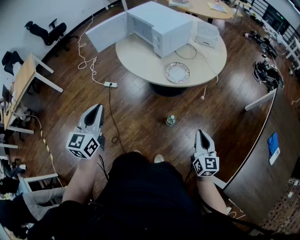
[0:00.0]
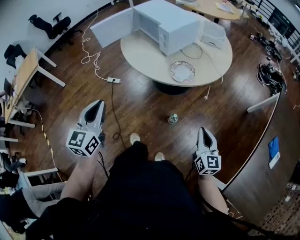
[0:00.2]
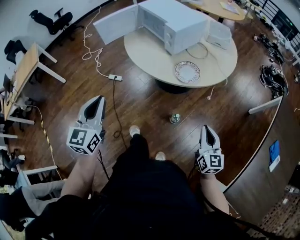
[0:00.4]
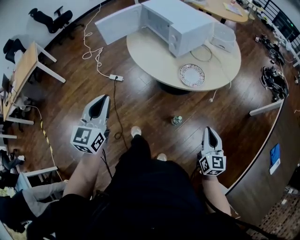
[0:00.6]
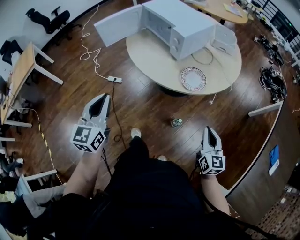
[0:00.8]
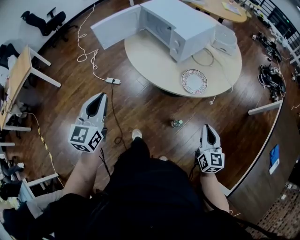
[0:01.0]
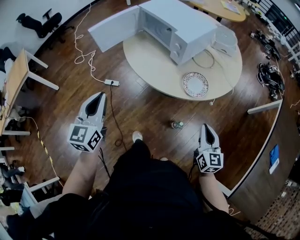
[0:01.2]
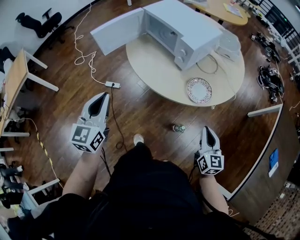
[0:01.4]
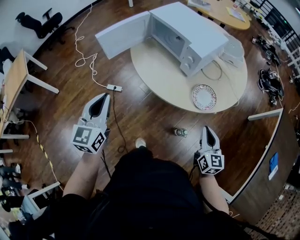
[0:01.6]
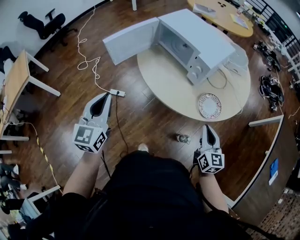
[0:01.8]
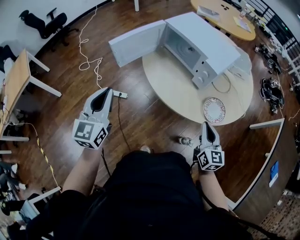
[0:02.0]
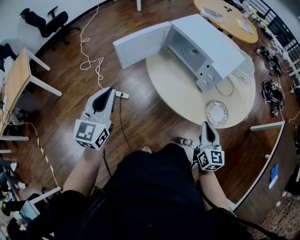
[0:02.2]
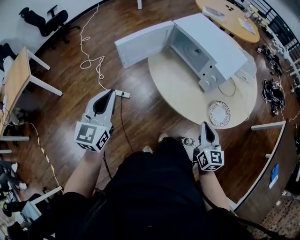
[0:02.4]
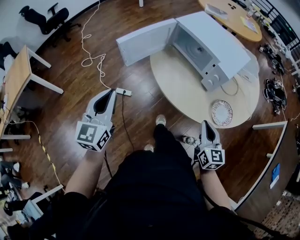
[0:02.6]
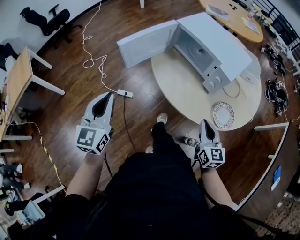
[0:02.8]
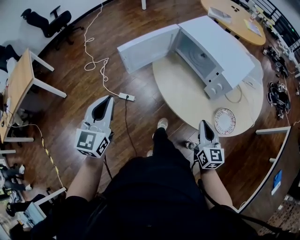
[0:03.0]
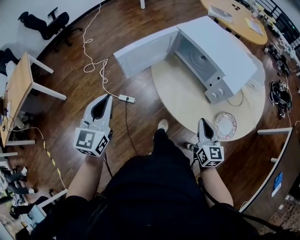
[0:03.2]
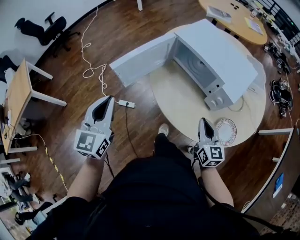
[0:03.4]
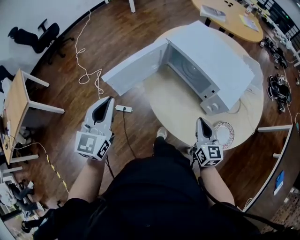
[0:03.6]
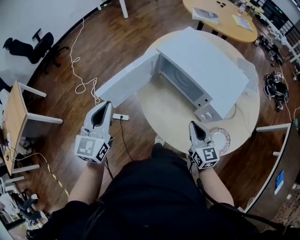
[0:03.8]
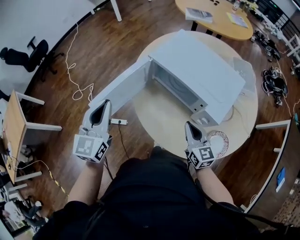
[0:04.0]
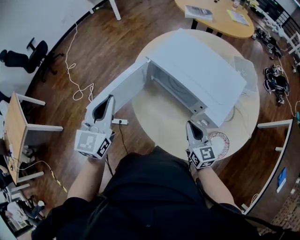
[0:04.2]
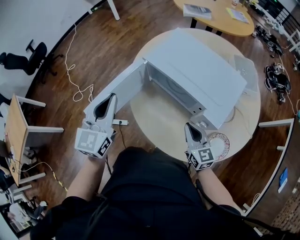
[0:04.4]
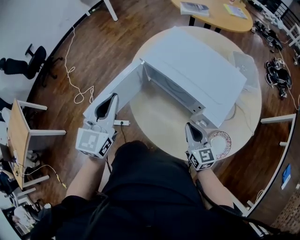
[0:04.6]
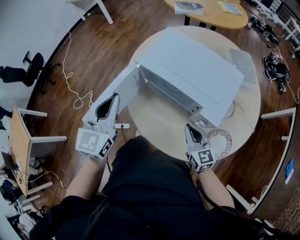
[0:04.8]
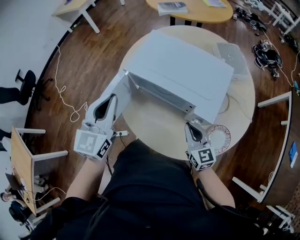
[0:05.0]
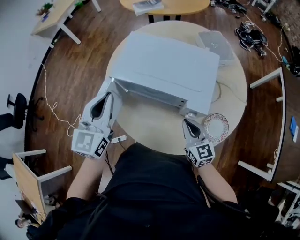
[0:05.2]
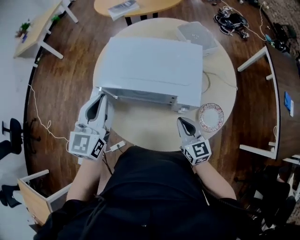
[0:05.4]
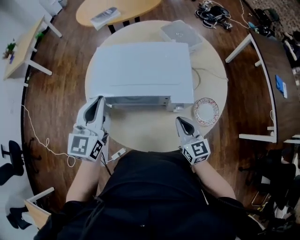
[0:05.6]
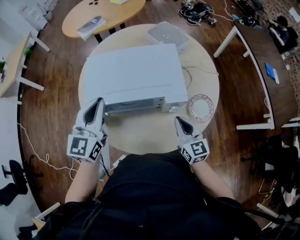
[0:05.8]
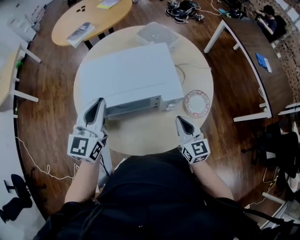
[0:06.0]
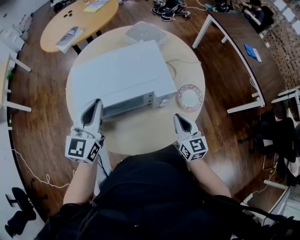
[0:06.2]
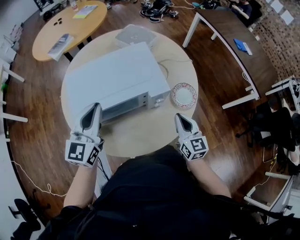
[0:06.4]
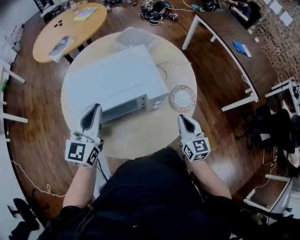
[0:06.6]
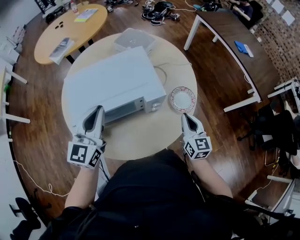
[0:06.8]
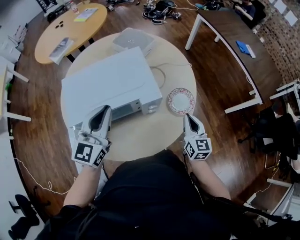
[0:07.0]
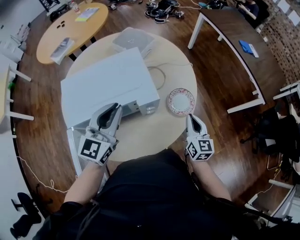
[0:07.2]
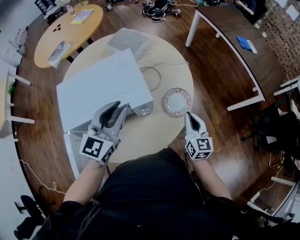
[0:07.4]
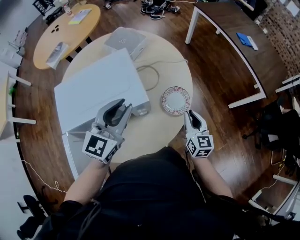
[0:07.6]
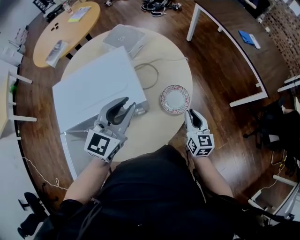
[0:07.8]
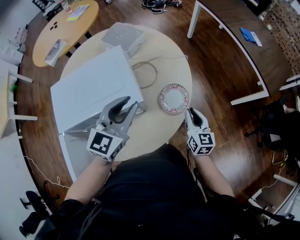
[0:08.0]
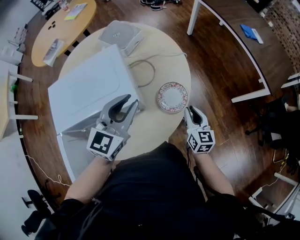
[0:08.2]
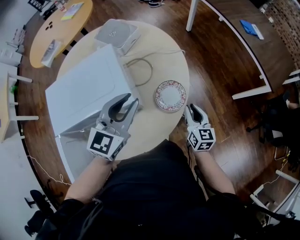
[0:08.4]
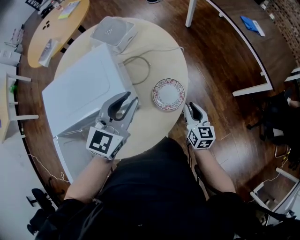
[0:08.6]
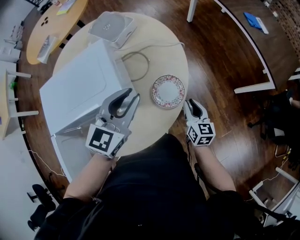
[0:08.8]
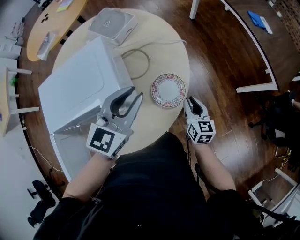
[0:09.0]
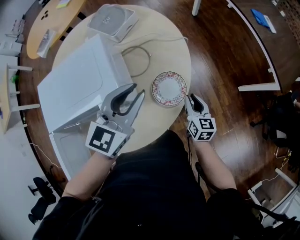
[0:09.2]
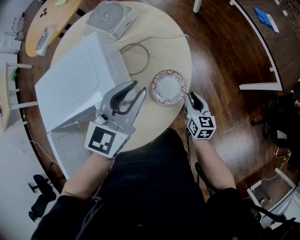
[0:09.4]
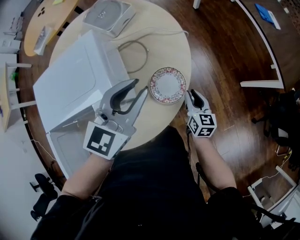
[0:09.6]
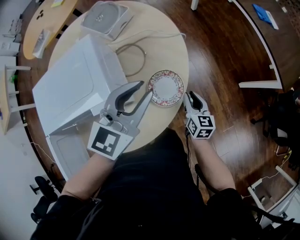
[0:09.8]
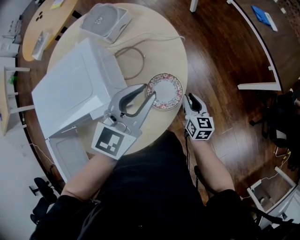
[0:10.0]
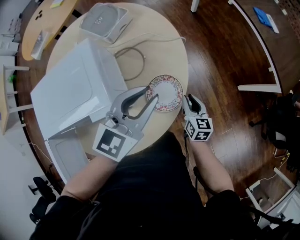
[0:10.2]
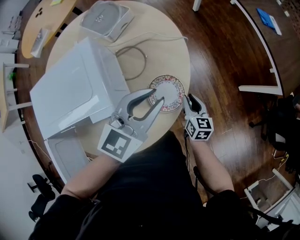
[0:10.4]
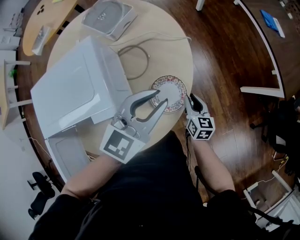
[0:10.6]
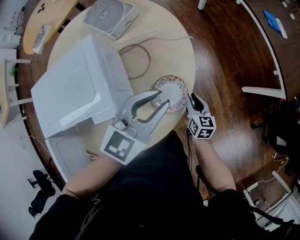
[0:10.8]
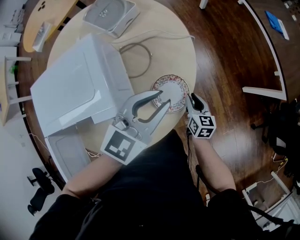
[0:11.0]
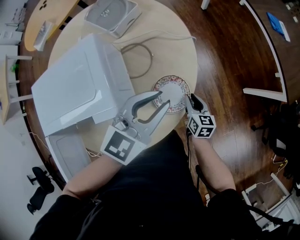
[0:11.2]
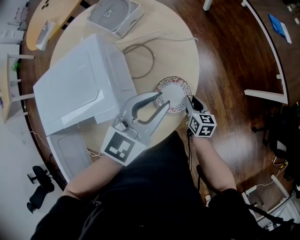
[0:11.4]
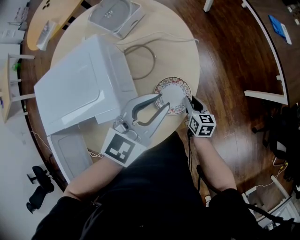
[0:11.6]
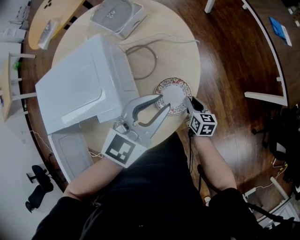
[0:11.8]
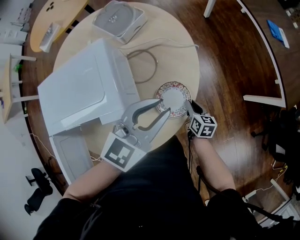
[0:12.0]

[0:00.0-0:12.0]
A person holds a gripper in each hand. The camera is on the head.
0:00.0 to 0:01.6: The two grippers go roughly 25 cm forward and to the left.
0:01.6 to 0:03.0: Both grippers move to the left and forward, approximately 15 cm.
0:03.0 to 0:04.4: The right gripper moves forward, some 15 cm; the left gripper shifts about 30 cm forward and to the right.
0:04.4 to 0:06.0: The right gripper ends up some 10 cm from where it was, and changes its angle by approximately 50 degrees, while the left gripper moves about 20 cm, and turns by some 50 degrees.
0:06.0 to 0:07.6: Both grippers travel together to the right, roughly 20 cm. The left gripper rotates approximately 20 degrees, and opens its fingers, while the right gripper changes its angle by some 20 degrees.
0:07.6 to 0:09.0: The left gripper heads to the right and forward, covering some 10 cm; the right gripper goes some 10 cm downward.
0:09.0 to 0:10.4: The left gripper shifts approximately 5 cm to the right. The right gripper moves roughly 5 cm.
0:10.4 to 0:12.0: The right gripper shifts by about 5 cm.

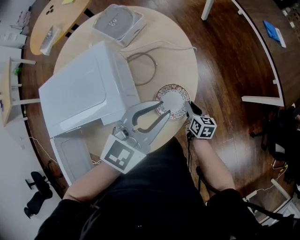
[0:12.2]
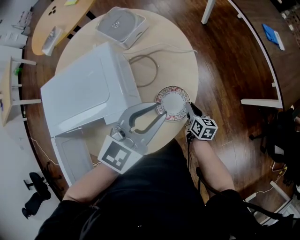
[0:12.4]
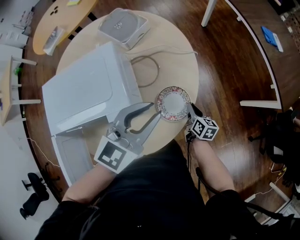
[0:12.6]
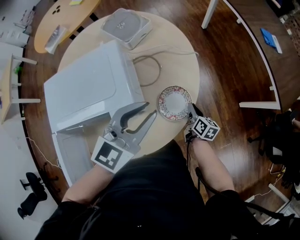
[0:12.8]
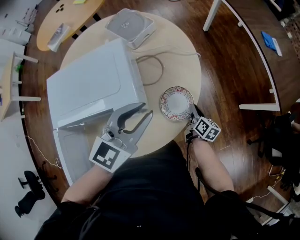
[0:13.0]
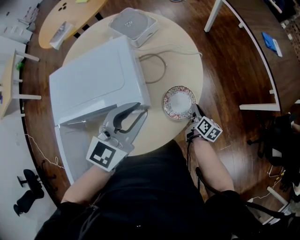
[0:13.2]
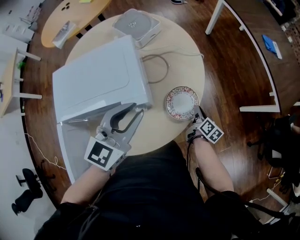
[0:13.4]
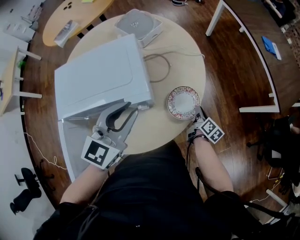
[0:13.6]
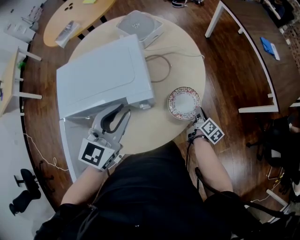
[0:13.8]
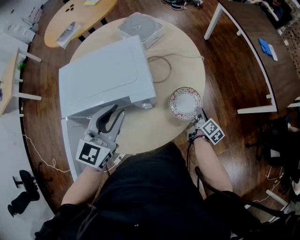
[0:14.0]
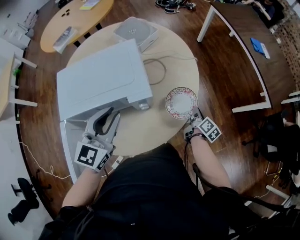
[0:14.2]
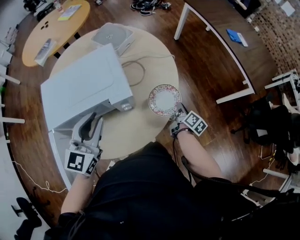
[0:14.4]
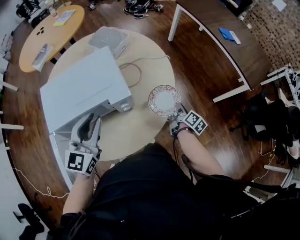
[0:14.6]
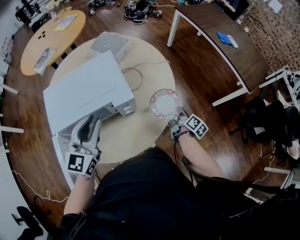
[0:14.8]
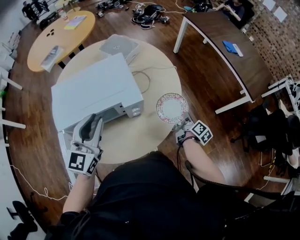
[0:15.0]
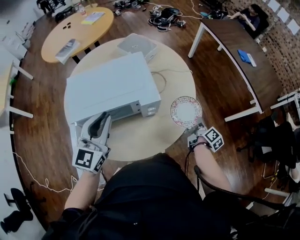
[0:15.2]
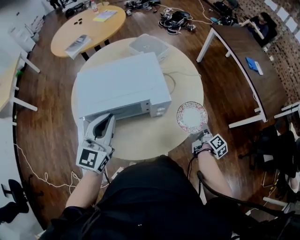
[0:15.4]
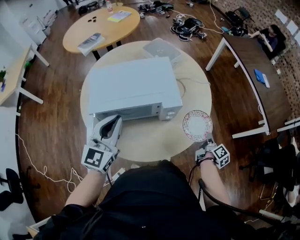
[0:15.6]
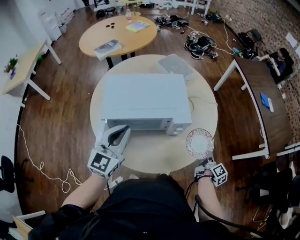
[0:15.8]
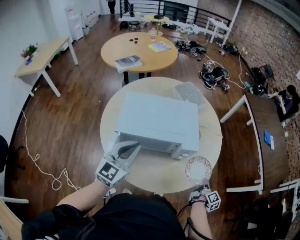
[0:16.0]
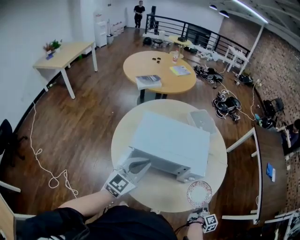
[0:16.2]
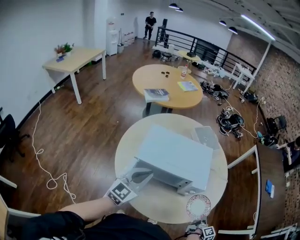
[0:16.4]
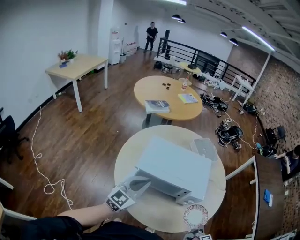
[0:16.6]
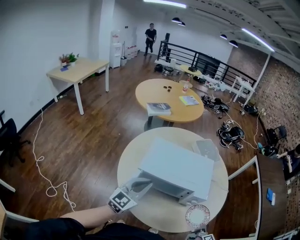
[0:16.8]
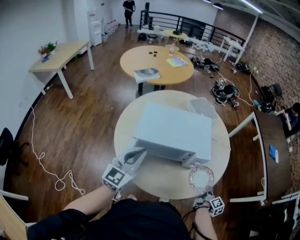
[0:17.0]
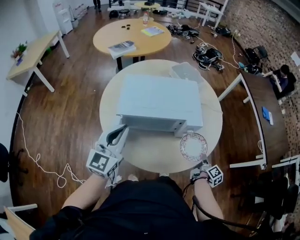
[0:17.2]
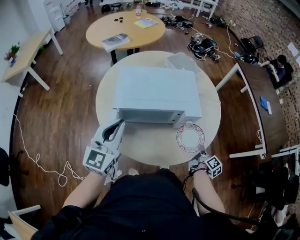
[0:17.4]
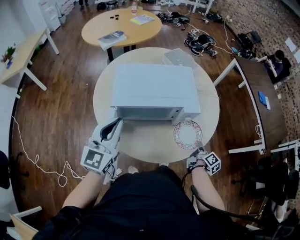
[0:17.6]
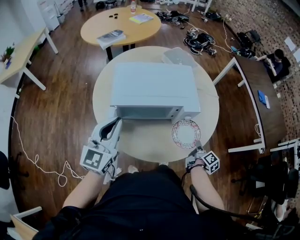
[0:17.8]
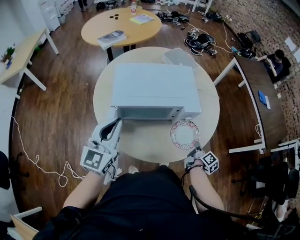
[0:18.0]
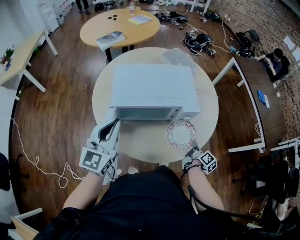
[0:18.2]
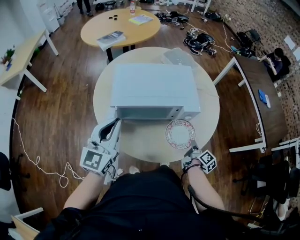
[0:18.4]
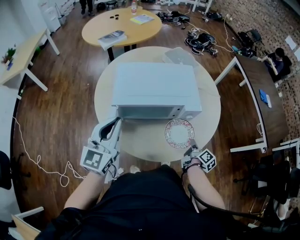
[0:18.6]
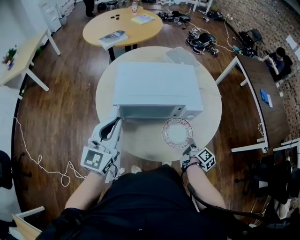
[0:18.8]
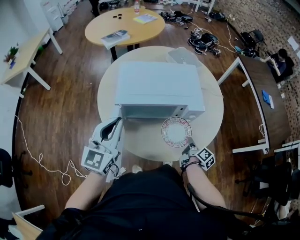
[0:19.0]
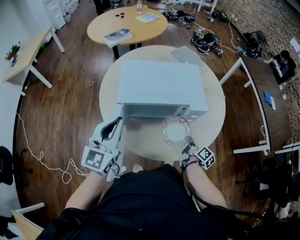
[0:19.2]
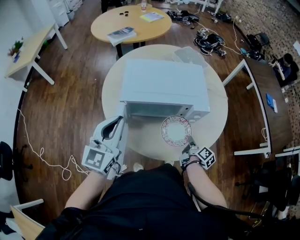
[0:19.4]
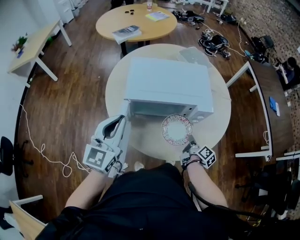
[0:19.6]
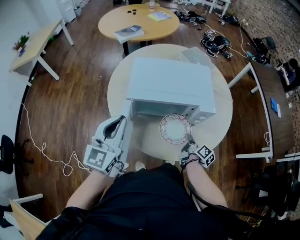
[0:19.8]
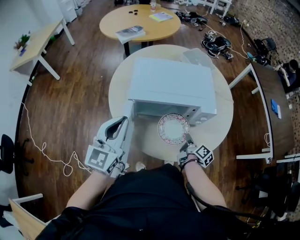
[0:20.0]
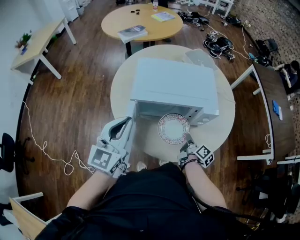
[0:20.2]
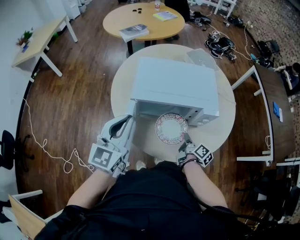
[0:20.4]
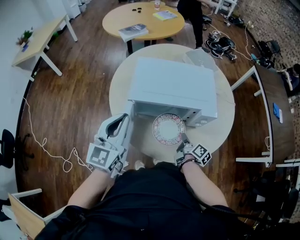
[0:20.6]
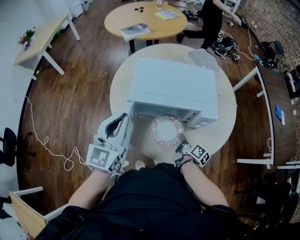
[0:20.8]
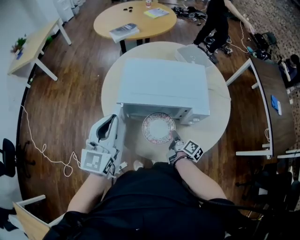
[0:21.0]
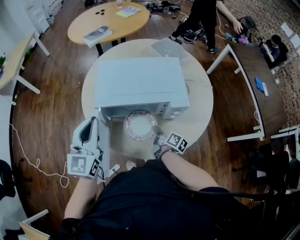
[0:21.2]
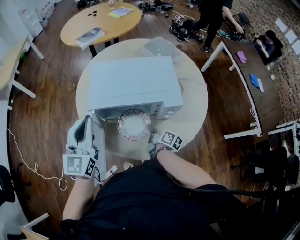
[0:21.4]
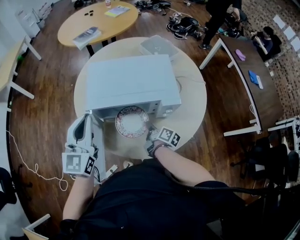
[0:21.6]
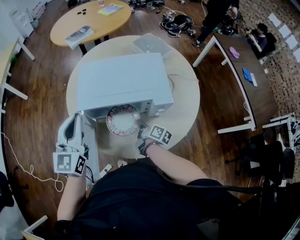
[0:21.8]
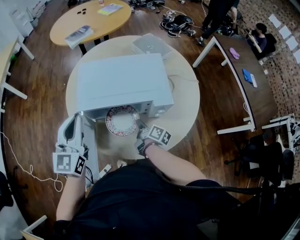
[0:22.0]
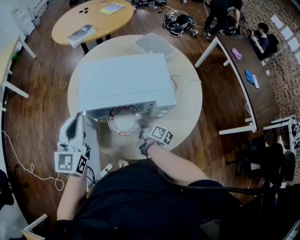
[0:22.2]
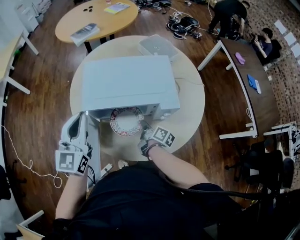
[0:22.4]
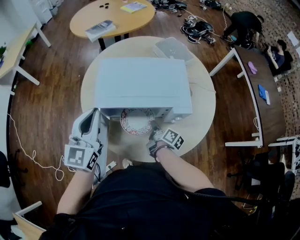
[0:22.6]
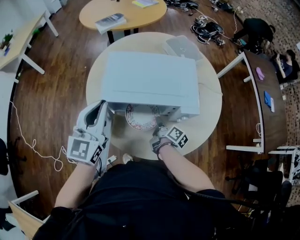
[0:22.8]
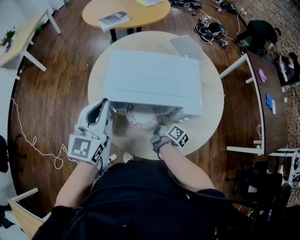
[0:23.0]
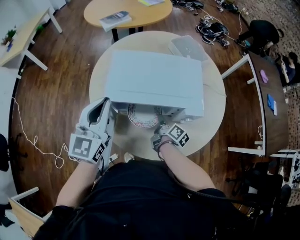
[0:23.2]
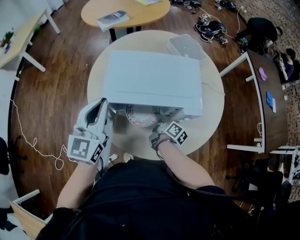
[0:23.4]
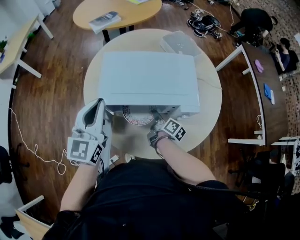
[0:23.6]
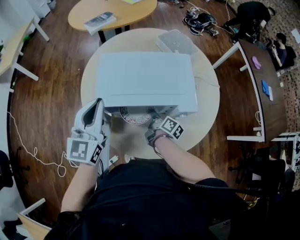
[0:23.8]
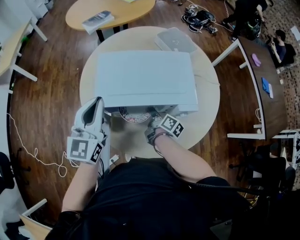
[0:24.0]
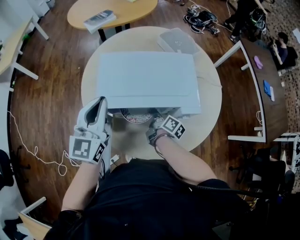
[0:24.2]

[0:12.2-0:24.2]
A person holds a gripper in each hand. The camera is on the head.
0:12.2 to 0:13.8: The right gripper changes its angle by some 30 degrees, while the left gripper moves to the left and backward, about 20 cm.
0:13.8 to 0:15.2: The left gripper shifts some 10 cm to the left and backward, while the right gripper heads upward, covering approximately 5 cm.
0:15.2 to 0:16.6: The right gripper moves approximately 5 cm, while the left gripper shifts roughly 10 cm to the left.
0:16.6 to 0:18.2: The left gripper heads backward, covering about 5 cm, while the right gripper travels to the left by approximately 10 cm.
0:18.2 to 0:19.8: The right gripper goes about 10 cm to the left.
0:19.8 to 0:21.2: The right gripper travels to the left by some 5 cm.
0:21.2 to 0:22.6: The grippers stay close to where they were, moving slightly.
0:22.6 to 0:24.2: The right gripper shifts by approximately 5 cm.
